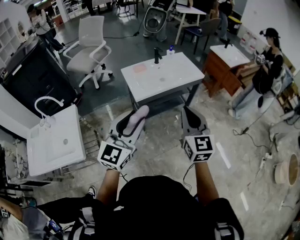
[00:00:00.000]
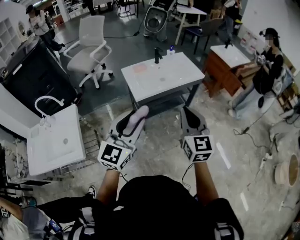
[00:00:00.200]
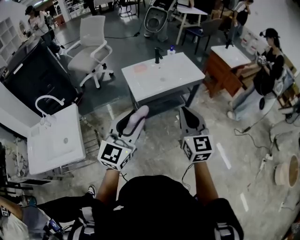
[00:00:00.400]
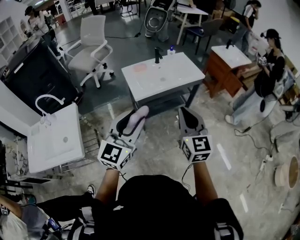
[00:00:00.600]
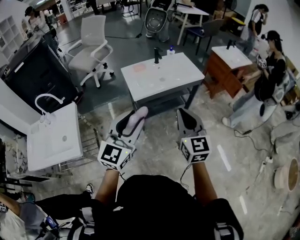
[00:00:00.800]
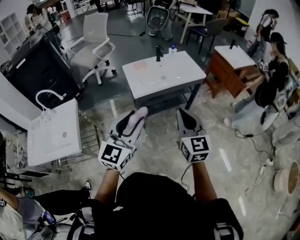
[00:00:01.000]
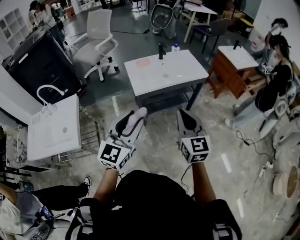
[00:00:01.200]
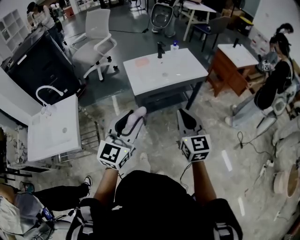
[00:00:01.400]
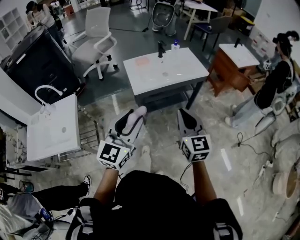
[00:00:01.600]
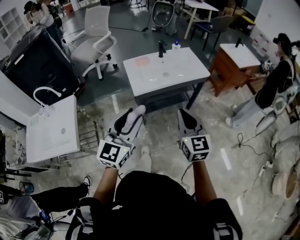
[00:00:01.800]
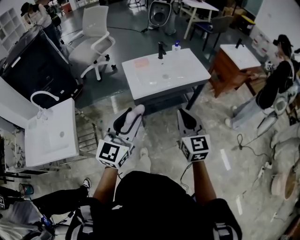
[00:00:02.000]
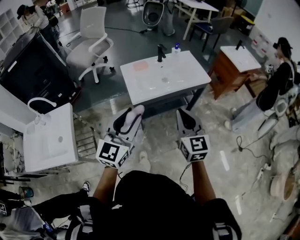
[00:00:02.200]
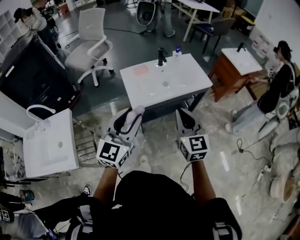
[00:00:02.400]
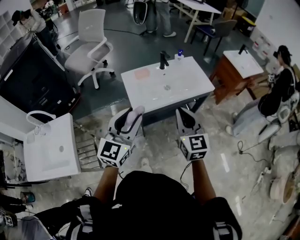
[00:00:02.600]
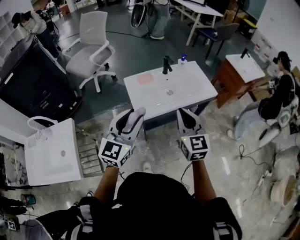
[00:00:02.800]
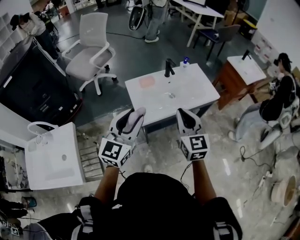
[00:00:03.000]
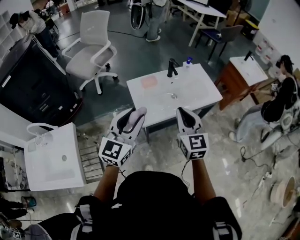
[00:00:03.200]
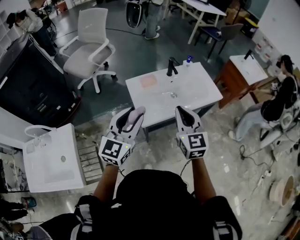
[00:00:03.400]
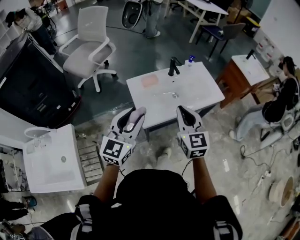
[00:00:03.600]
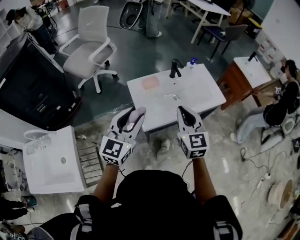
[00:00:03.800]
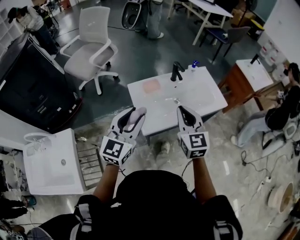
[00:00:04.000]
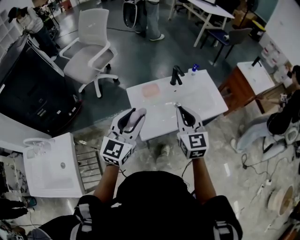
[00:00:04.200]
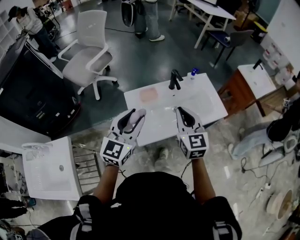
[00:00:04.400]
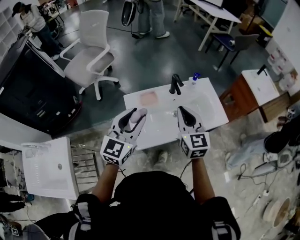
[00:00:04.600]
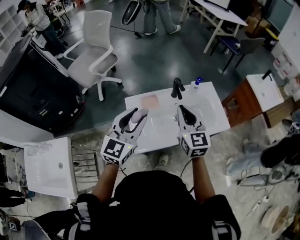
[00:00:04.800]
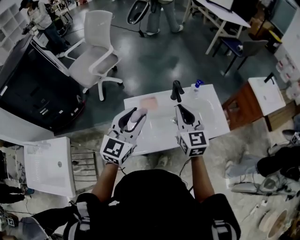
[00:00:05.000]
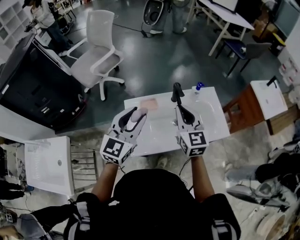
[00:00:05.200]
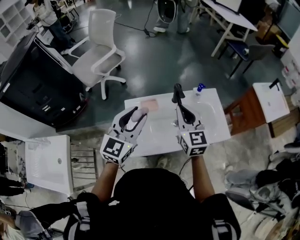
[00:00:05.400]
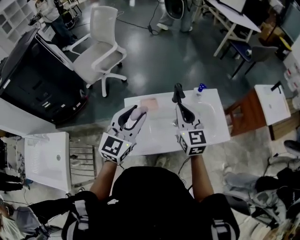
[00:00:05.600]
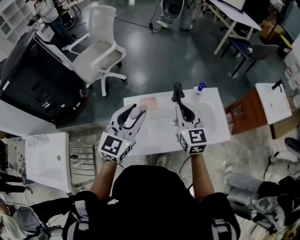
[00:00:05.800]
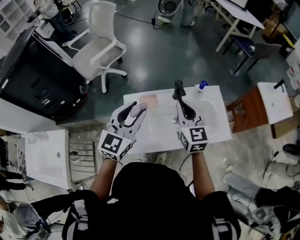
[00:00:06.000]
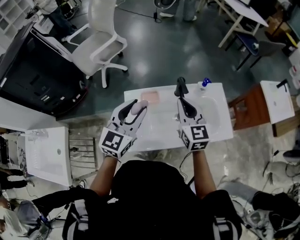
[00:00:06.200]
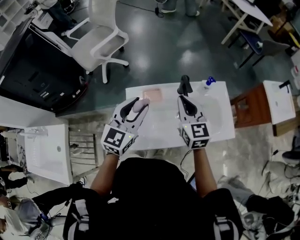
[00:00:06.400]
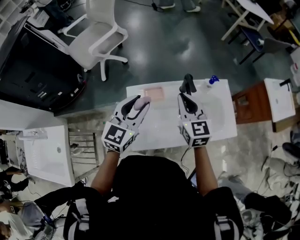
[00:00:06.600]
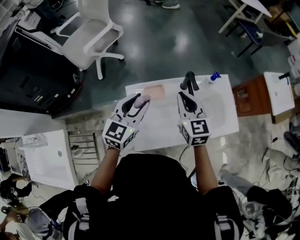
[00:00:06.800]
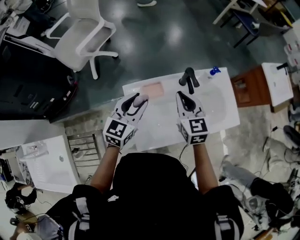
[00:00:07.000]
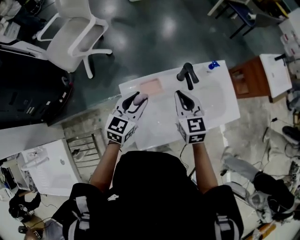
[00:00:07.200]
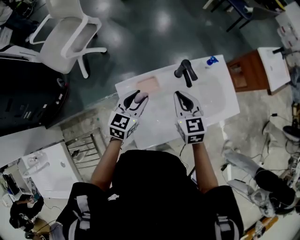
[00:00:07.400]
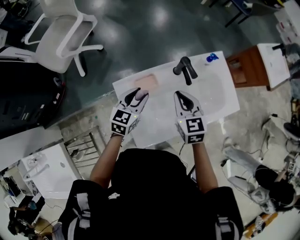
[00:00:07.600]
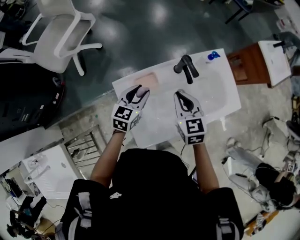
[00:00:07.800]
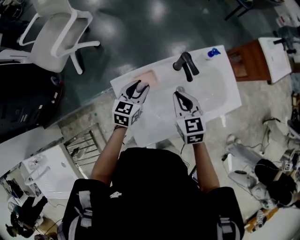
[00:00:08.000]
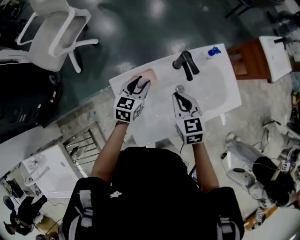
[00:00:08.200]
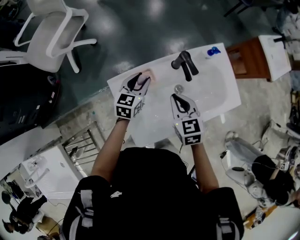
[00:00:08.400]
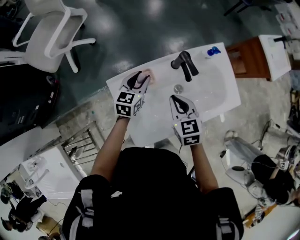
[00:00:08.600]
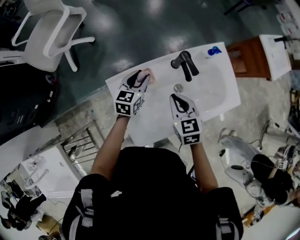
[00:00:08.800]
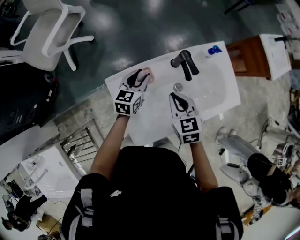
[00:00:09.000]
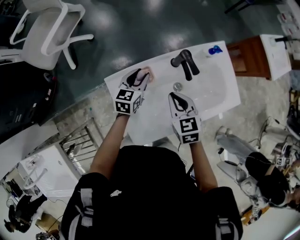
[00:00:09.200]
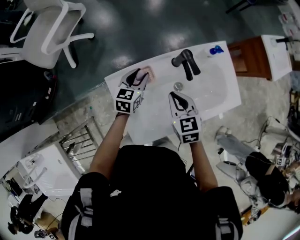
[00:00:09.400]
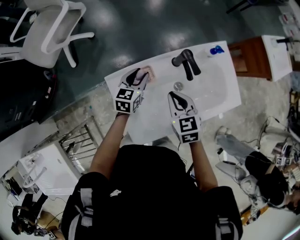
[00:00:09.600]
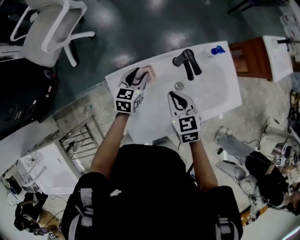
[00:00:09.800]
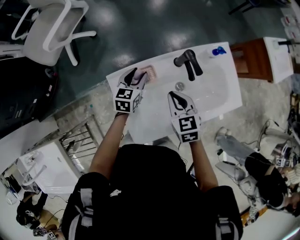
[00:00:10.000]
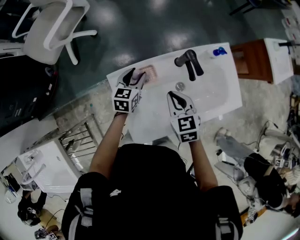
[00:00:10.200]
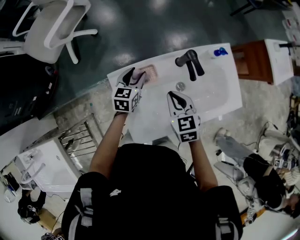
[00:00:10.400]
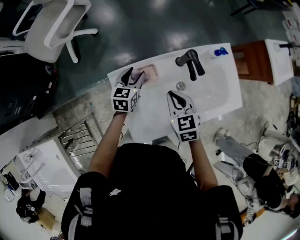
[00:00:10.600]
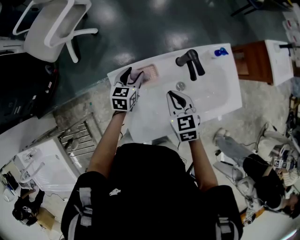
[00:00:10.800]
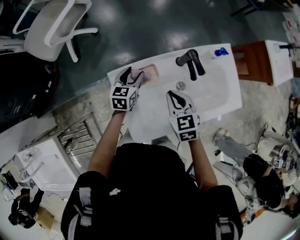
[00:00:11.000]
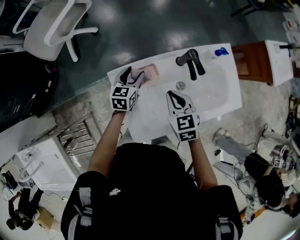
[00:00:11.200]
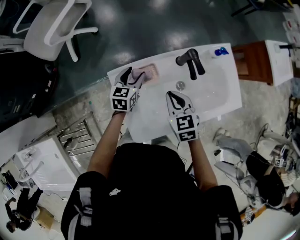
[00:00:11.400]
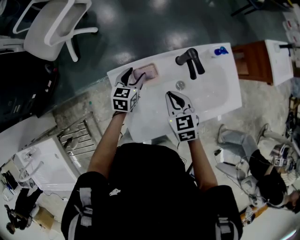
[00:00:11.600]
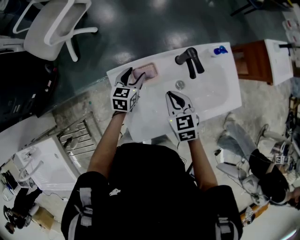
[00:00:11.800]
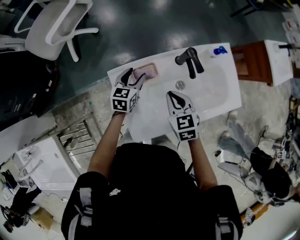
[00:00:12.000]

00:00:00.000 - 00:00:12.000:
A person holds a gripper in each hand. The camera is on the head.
00:00:00.000 - 00:00:01.600: The right gripper moves downward, roughly 5 cm; the left gripper changes place by some 5 cm.
00:00:01.600 - 00:00:03.000: The grippers both shift forward by about 25 cm.
00:00:03.000 - 00:00:04.400: The grippers both shift forward by approximately 15 cm.
00:00:04.400 - 00:00:06.000: The right gripper heads forward, covering some 15 cm. The left gripper travels forward and to the right by about 15 cm.
00:00:06.000 - 00:00:07.600: The left gripper goes roughly 25 cm downward and forward, and changes its angle by about 30 degrees; the right gripper goes approximately 15 cm downward and to the left, and turns by approximately 20 degrees.
00:00:07.600 - 00:00:09.000: The left gripper moves forward and downward, approximately 10 cm; the right gripper moves downward, approximately 5 cm.
00:00:09.000 - 00:00:10.400: The grippers make only small movements.
00:00:10.400 - 00:00:12.000: The grippers move only a little.

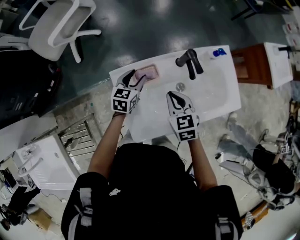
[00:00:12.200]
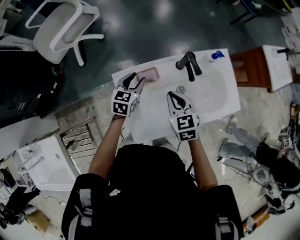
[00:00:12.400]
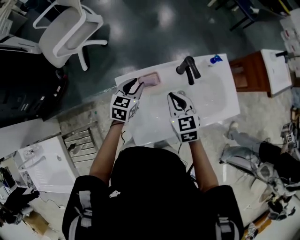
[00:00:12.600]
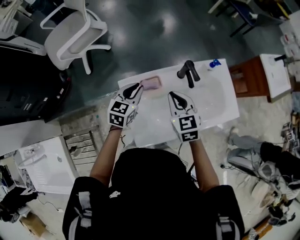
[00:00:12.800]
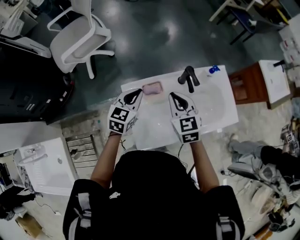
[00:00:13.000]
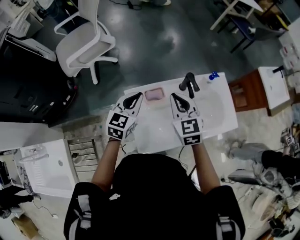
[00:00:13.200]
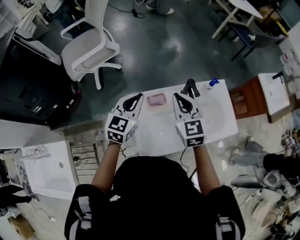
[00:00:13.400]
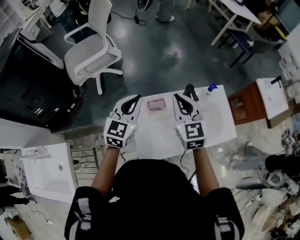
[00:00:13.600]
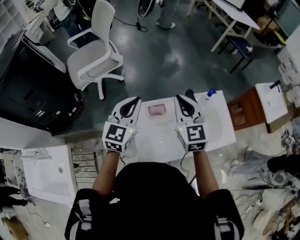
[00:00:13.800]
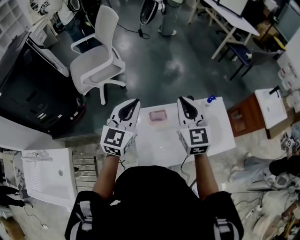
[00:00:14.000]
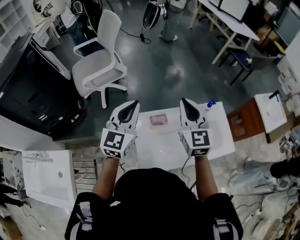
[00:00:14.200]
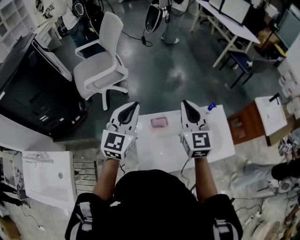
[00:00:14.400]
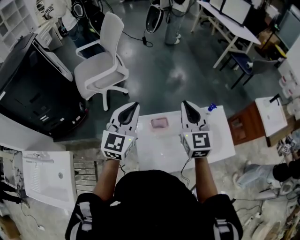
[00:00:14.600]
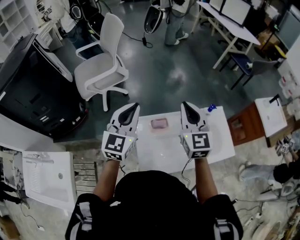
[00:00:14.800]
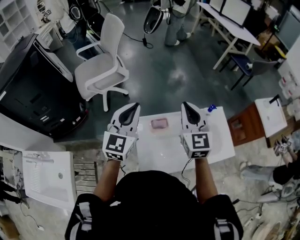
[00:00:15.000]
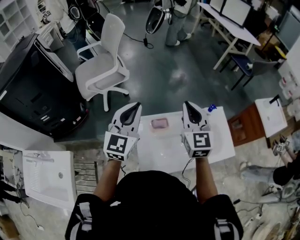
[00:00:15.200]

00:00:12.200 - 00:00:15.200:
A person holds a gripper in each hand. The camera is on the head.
00:00:12.200 - 00:00:13.800: The two grippers go approximately 30 cm upward. The right gripper tips its fingers upward by roughly 30 degrees. The left gripper swivels roughly 30 degrees, and closes its fingers.
00:00:13.800 - 00:00:15.200: The left gripper is displaced upward by roughly 5 cm.

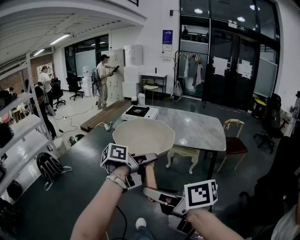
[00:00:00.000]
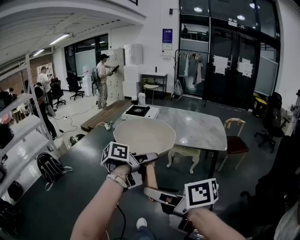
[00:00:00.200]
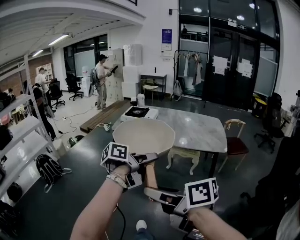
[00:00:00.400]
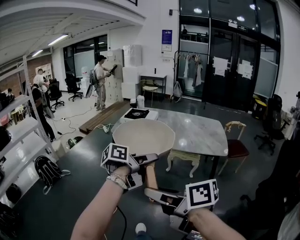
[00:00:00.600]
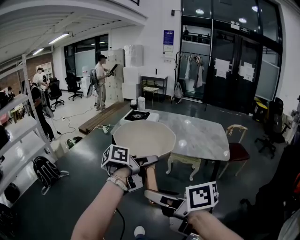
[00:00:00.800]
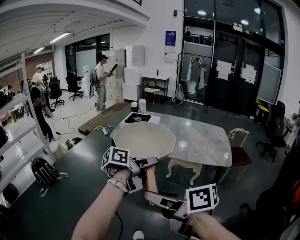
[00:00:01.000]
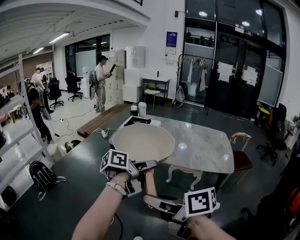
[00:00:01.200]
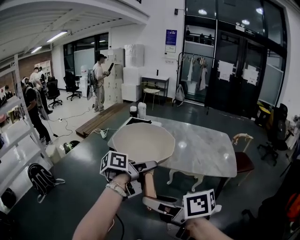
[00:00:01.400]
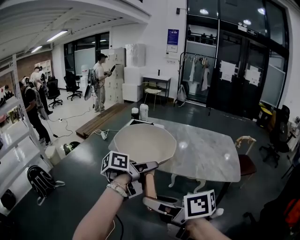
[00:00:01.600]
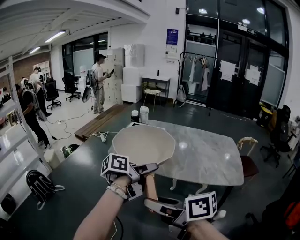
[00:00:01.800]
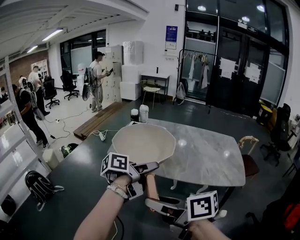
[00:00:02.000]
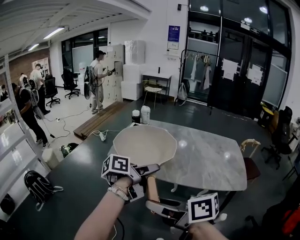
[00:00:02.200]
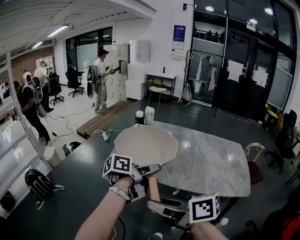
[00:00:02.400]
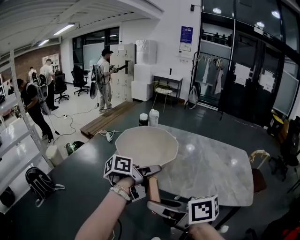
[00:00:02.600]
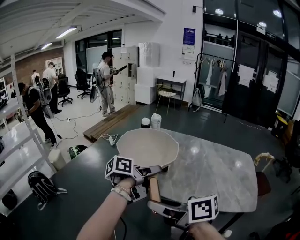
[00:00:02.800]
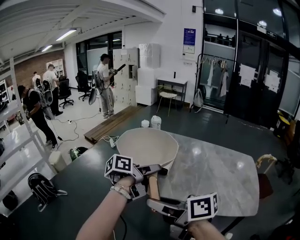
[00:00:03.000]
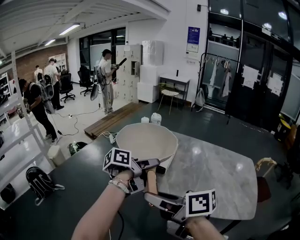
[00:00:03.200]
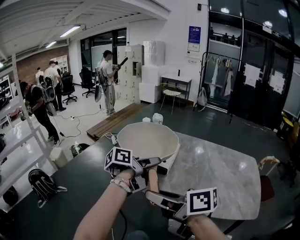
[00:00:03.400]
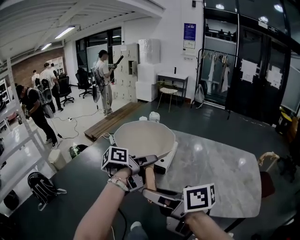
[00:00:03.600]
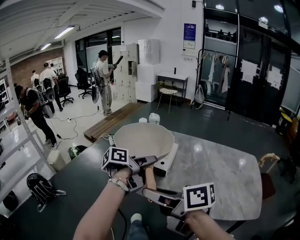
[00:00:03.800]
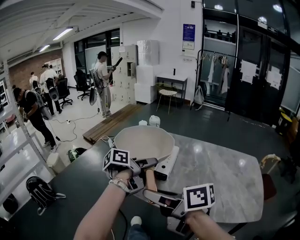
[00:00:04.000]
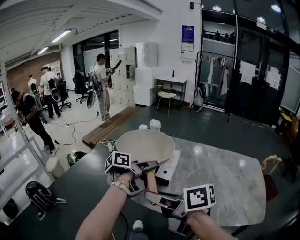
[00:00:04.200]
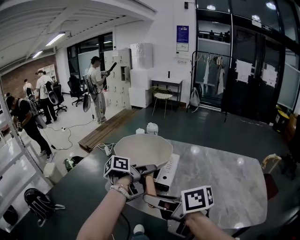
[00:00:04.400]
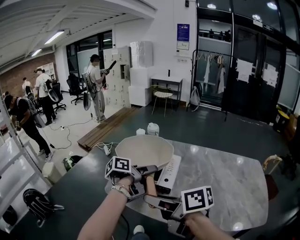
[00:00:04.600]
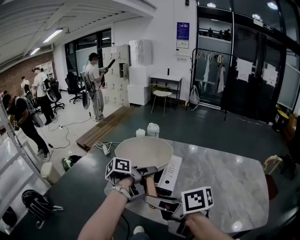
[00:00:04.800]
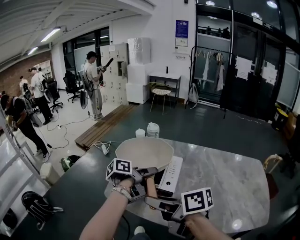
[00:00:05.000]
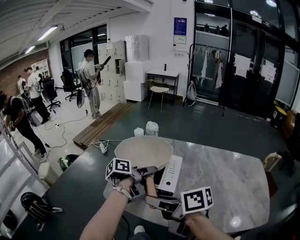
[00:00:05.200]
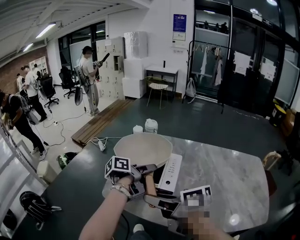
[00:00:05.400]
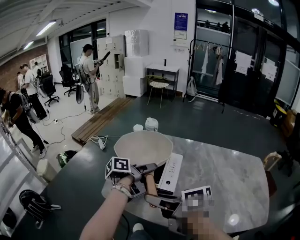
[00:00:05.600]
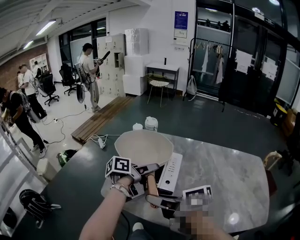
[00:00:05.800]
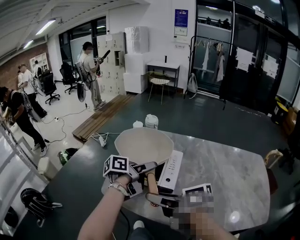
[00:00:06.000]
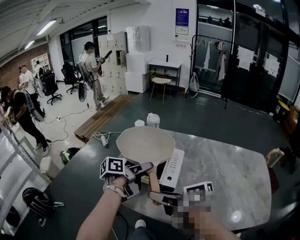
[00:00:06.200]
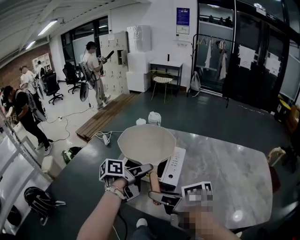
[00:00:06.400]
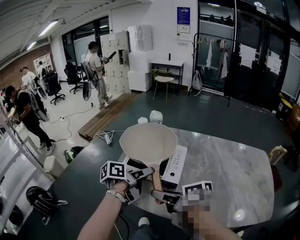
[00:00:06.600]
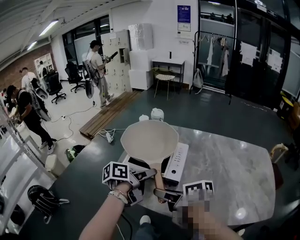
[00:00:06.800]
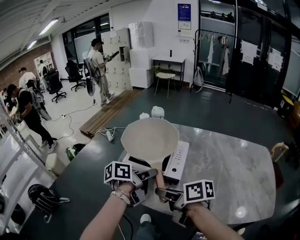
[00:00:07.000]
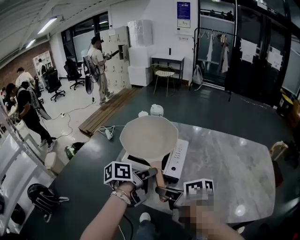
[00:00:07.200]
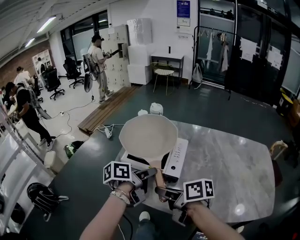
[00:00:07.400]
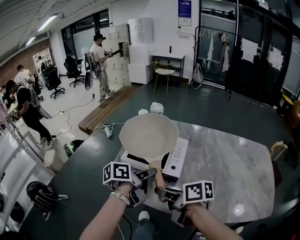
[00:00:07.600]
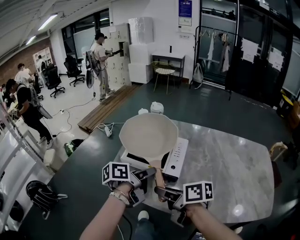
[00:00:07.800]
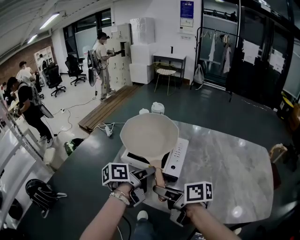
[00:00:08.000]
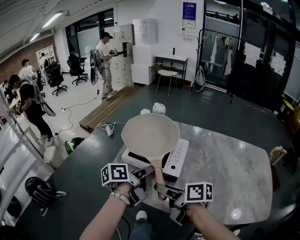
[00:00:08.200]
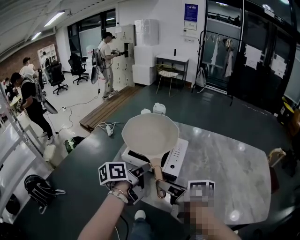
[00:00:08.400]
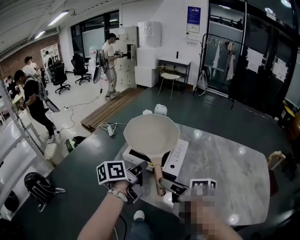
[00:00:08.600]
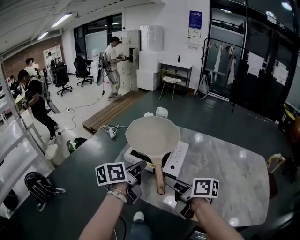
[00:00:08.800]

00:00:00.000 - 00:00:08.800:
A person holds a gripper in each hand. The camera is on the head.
00:00:00.000 - 00:00:01.400: Both grippers travel together forward, approximately 20 cm.
00:00:01.400 - 00:00:03.000: The two grippers go roughly 25 cm forward.
00:00:03.000 - 00:00:04.400: Both grippers move forward, roughly 15 cm.
00:00:04.400 - 00:00:05.800: Both grippers travel together forward, roughly 5 cm.
00:00:05.800 - 00:00:07.400: The left gripper goes about 5 cm backward, and closes; the right gripper travels downward by approximately 5 cm.
00:00:07.400 - 00:00:08.800: The left gripper shifts about 5 cm upward, and turns by roughly 20 degrees. The right gripper shifts by approximately 5 cm, and opens its fingers.
